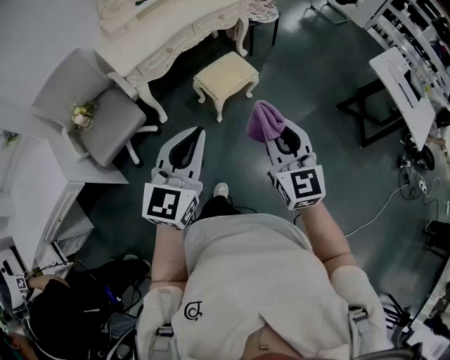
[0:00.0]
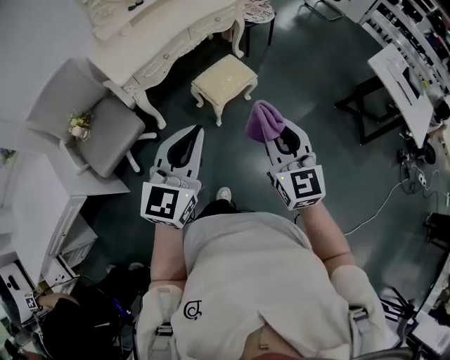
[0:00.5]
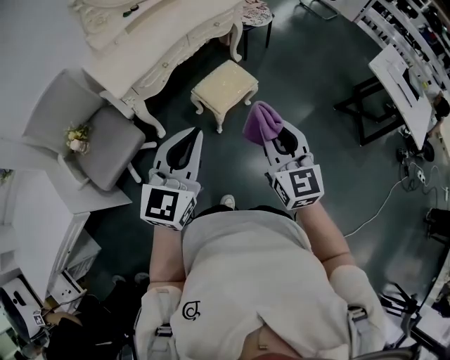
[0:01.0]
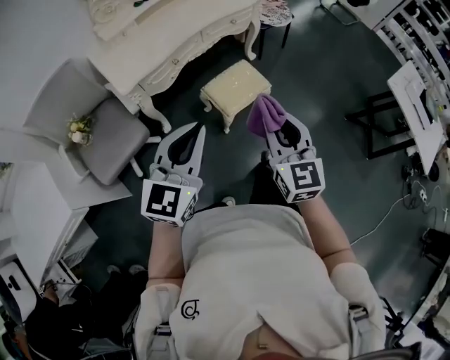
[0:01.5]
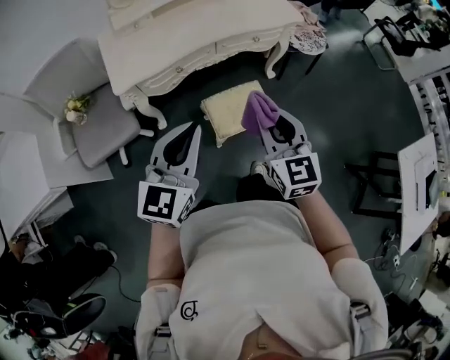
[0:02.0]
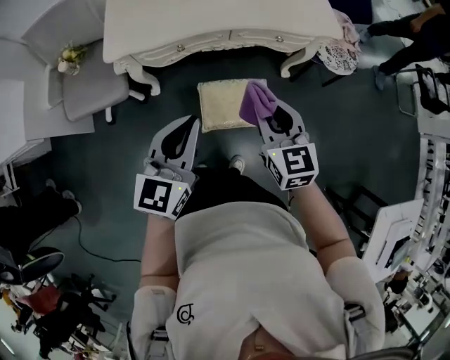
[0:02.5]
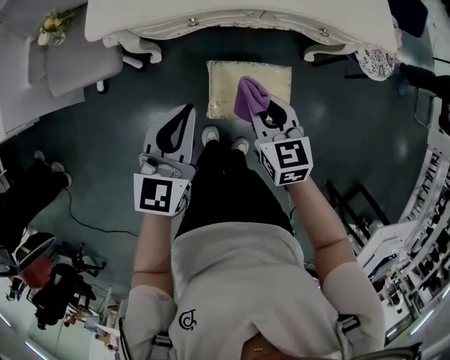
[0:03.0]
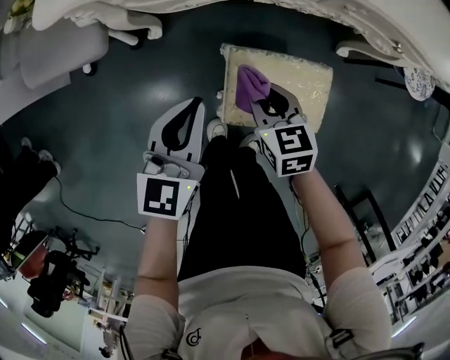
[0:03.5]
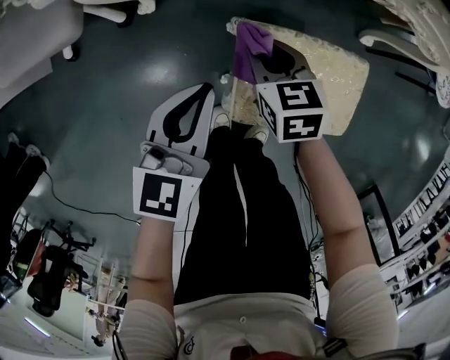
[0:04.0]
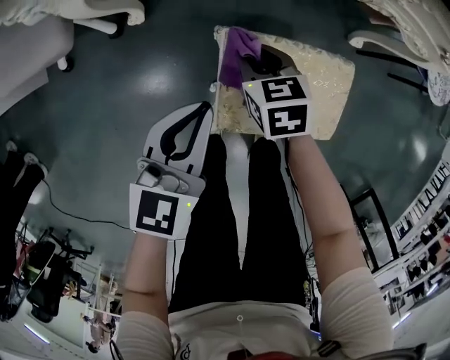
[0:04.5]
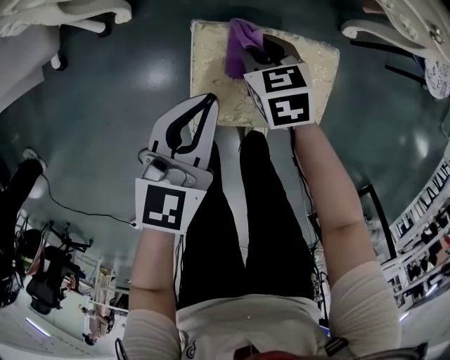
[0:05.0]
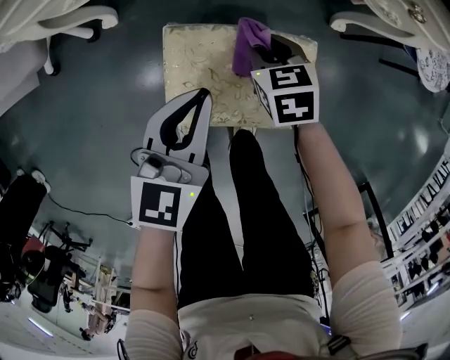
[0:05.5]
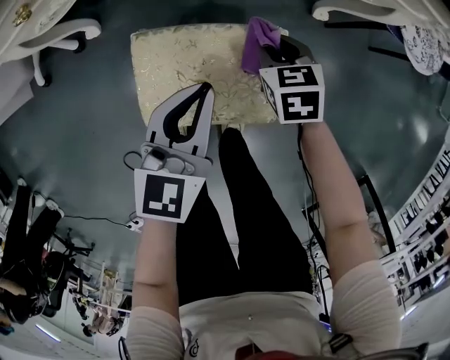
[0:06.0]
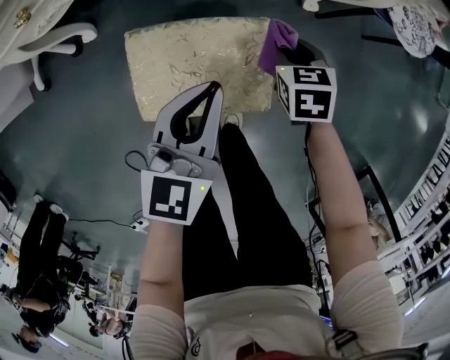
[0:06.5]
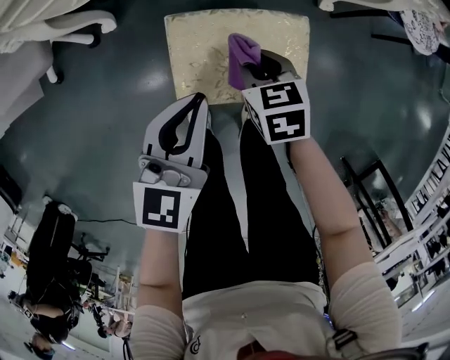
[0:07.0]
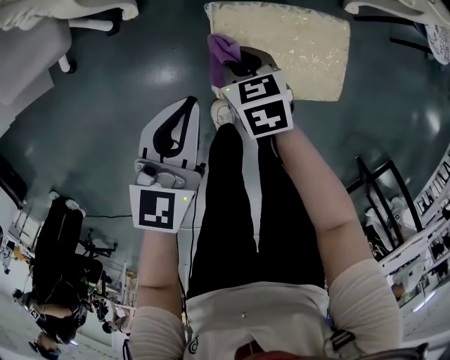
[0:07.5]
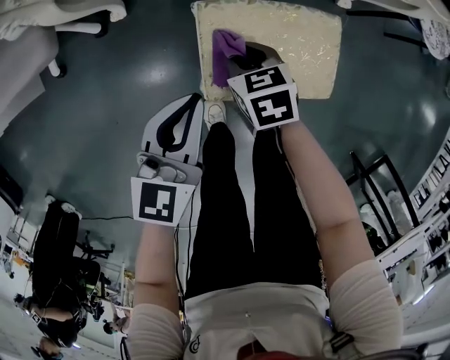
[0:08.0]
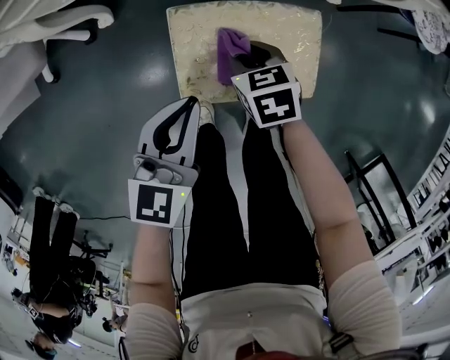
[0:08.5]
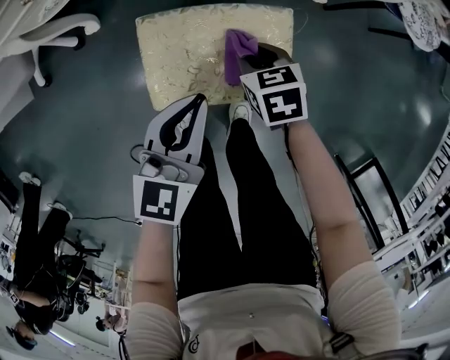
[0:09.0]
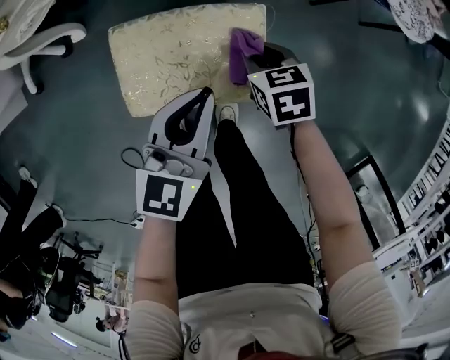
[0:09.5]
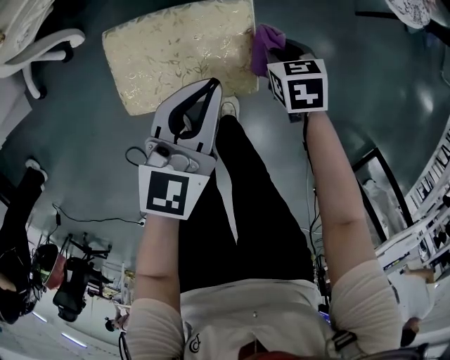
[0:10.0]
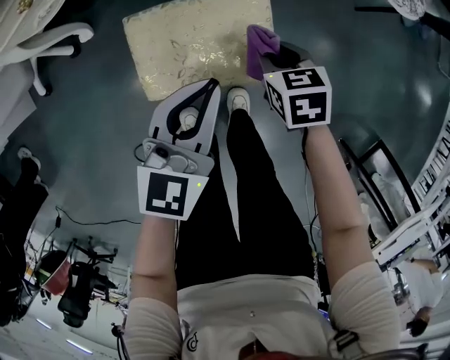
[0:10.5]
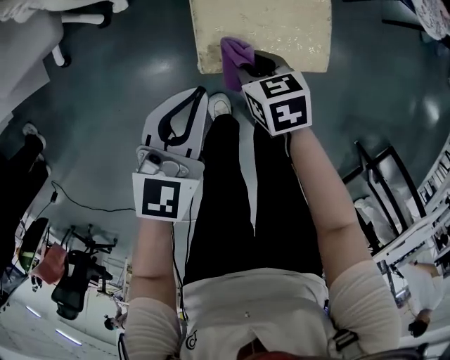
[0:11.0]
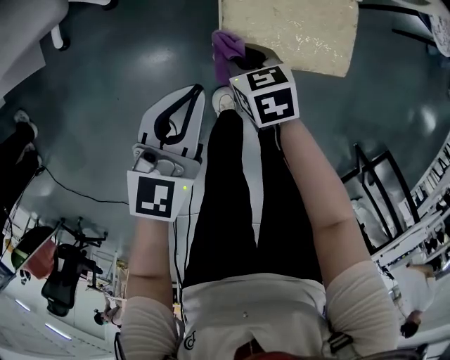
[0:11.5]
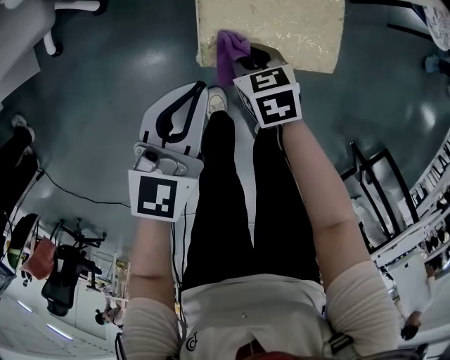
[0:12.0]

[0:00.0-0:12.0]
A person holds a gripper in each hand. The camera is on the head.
0:00.0 to 0:02.0: The two grippers go some 35 cm forward.
0:02.0 to 0:04.0: Both grippers travel together downward, approximately 50 cm. The right gripper tips its fingers downward by some 40 degrees. The left gripper rotates about 30 degrees.
0:04.0 to 0:06.0: Both grippers move to the right, about 25 cm.
0:06.0 to 0:08.0: The right gripper moves left and right over about 35 cm, changing direction 2 times, while the left gripper shifts some 20 cm to the left.
0:08.0 to 0:10.0: Both grippers travel together to the right, some 30 cm.
0:10.0 to 0:12.0: Both grippers travel together to the left, approximately 25 cm.

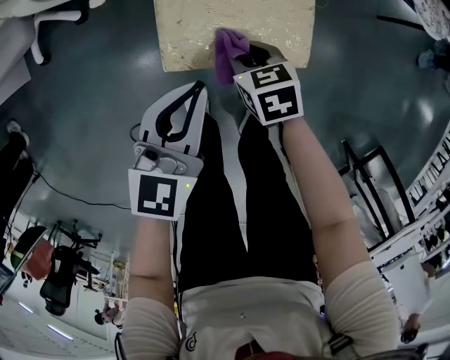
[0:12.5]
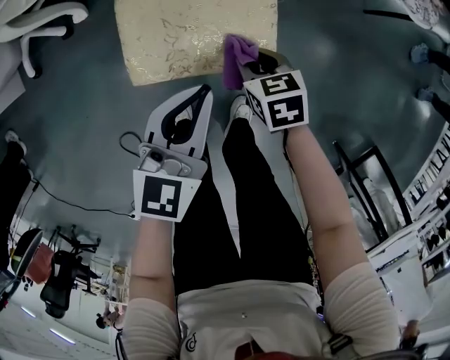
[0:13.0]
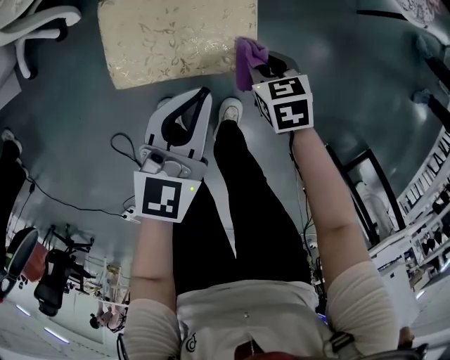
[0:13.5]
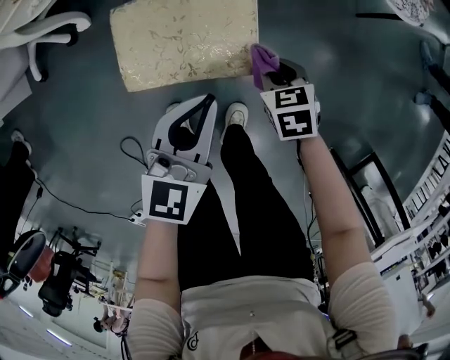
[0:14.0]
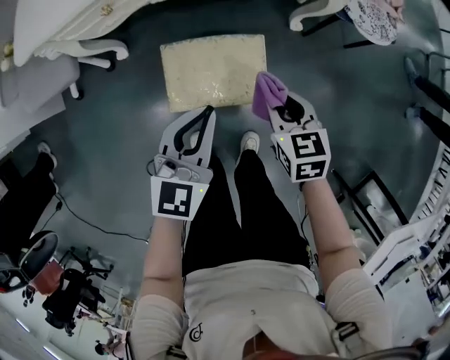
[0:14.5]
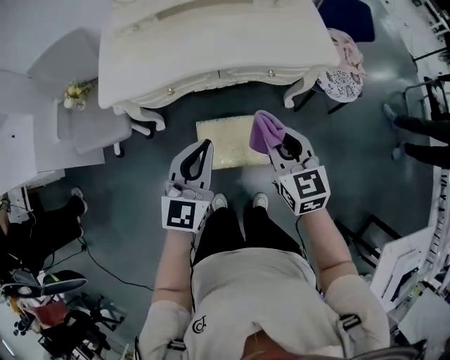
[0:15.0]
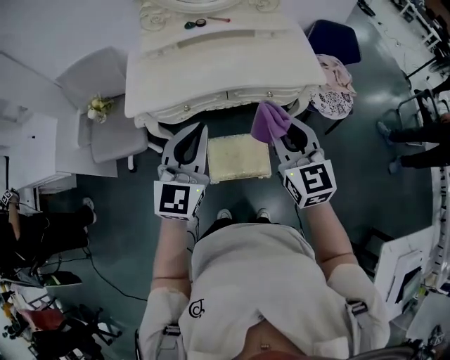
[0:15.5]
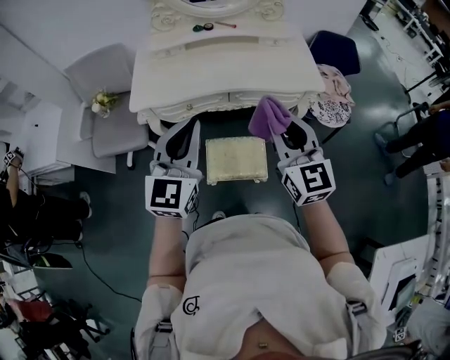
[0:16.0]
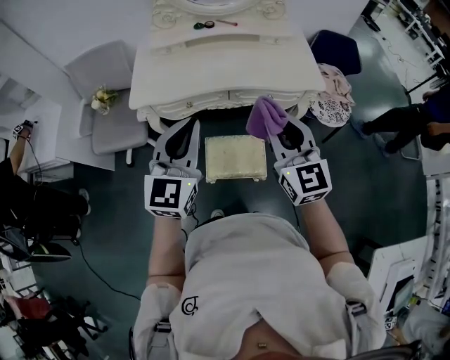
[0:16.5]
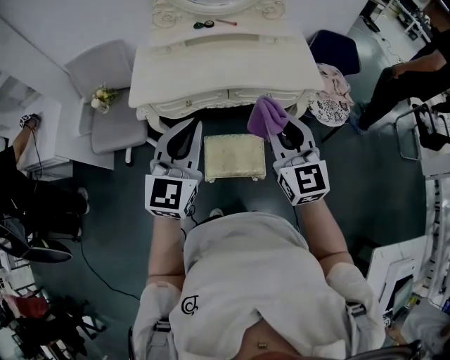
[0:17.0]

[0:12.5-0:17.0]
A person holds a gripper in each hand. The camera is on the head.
0:12.5 to 0:14.5: The right gripper shifts approximately 25 cm upward and to the right, and rotates about 20 degrees; the left gripper is displaced upward and to the right by roughly 20 cm.
0:14.5 to 0:17.0: Both grippers move upward, about 40 cm. The left gripper turns by some 20 degrees. Meanwhile the right gripper tilts its fingers about 50 degrees upward.

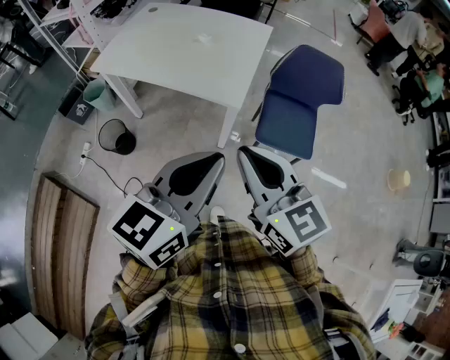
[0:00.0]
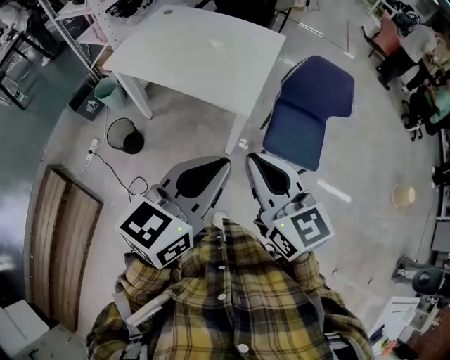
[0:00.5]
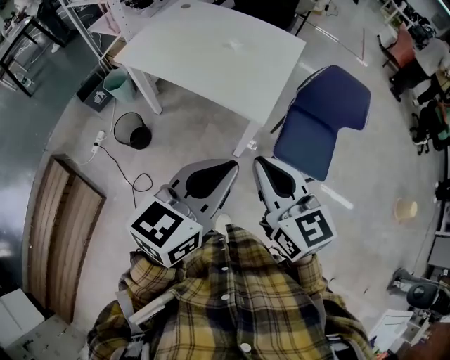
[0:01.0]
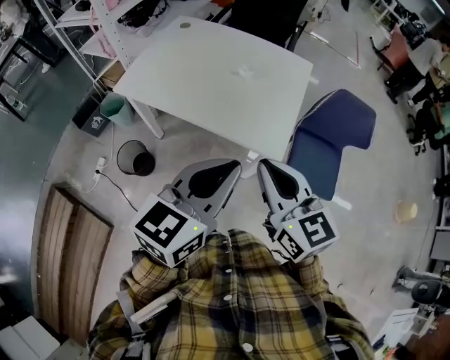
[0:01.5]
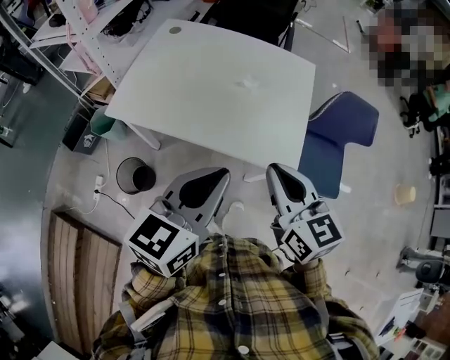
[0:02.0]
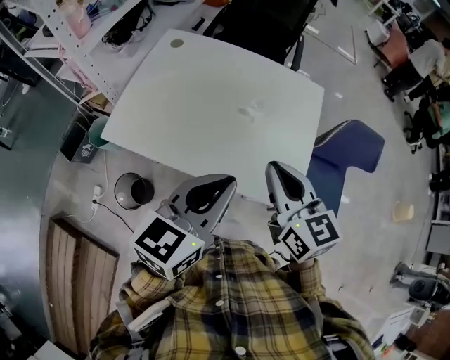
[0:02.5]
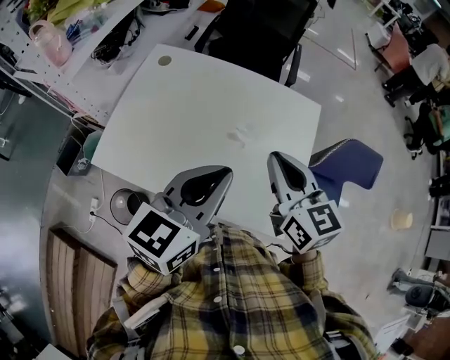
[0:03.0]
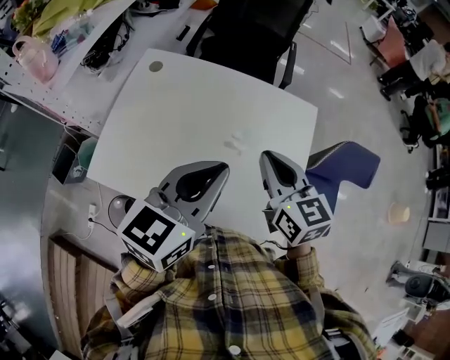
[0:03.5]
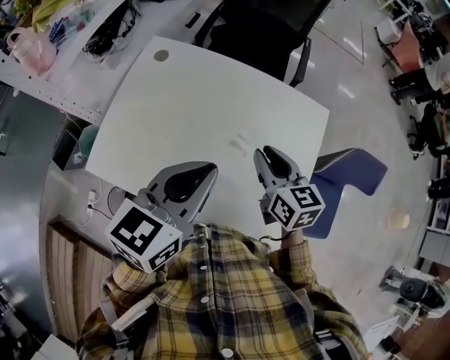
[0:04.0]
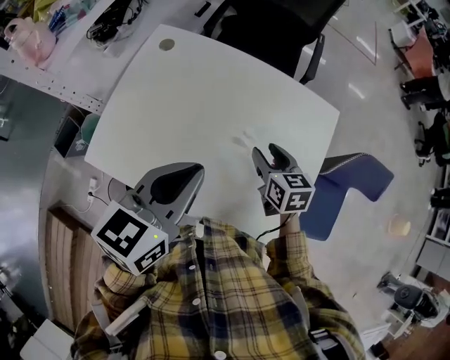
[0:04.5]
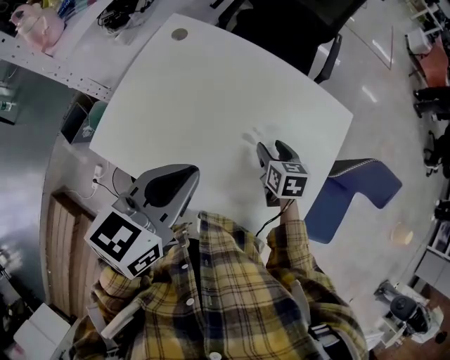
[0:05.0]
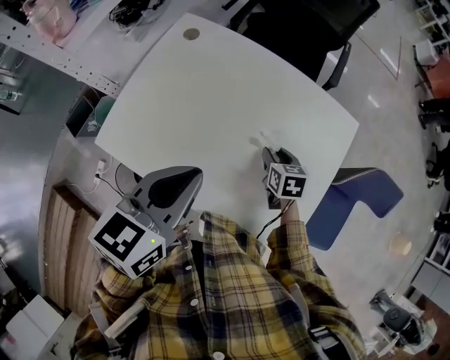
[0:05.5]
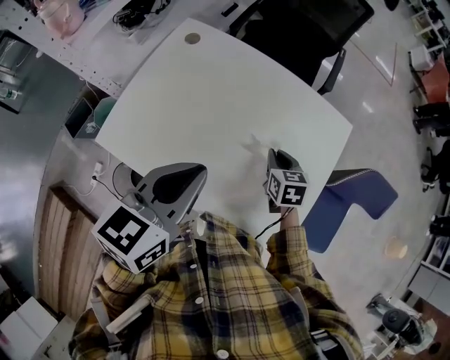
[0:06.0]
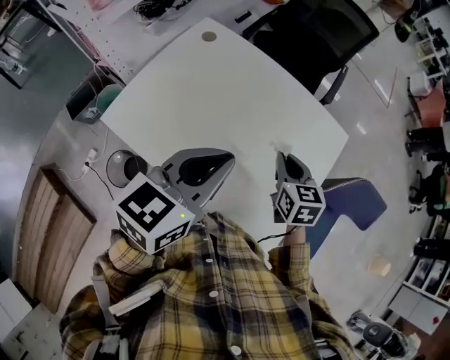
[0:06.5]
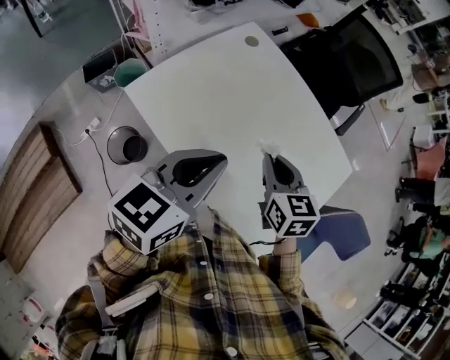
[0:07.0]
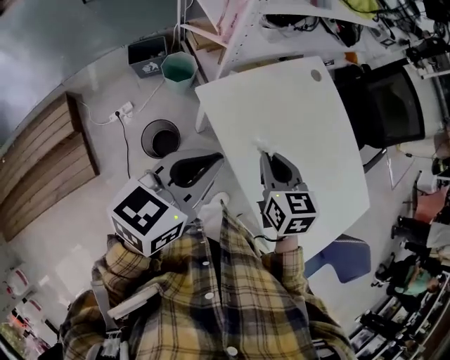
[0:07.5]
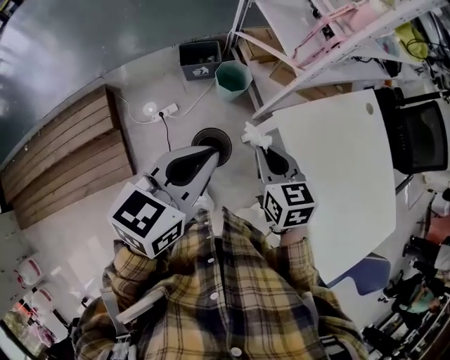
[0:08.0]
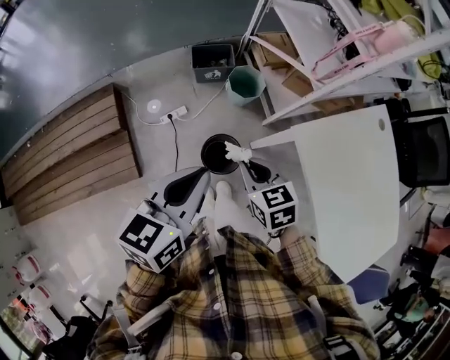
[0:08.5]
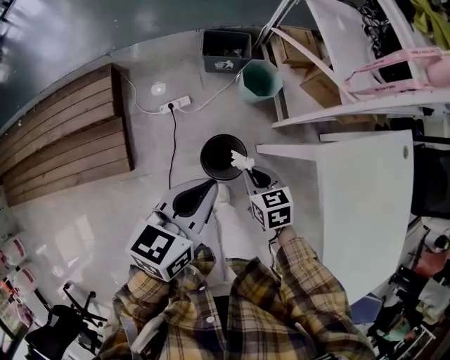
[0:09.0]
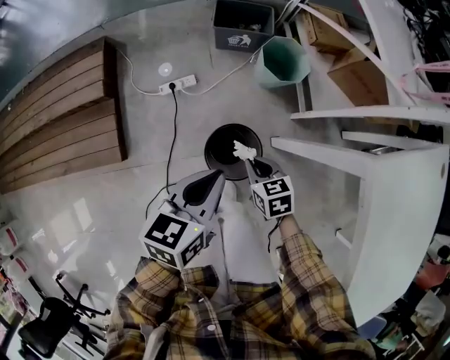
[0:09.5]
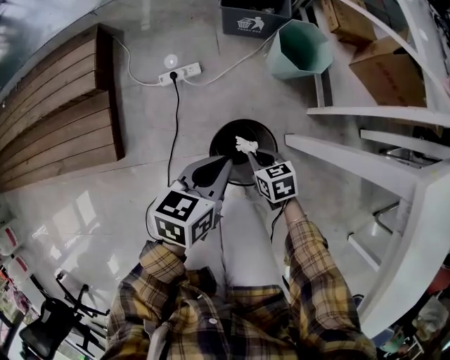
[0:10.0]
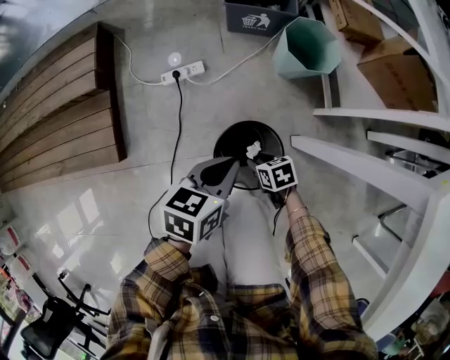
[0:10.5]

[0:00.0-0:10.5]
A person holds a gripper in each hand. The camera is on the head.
0:00.0 to 0:02.0: The grippers both shift forward and to the left by about 30 cm.
0:02.0 to 0:04.0: The grippers both shift forward by roughly 30 cm.
0:04.0 to 0:06.5: The right gripper goes downward and returns, some 20 cm each way, and opens and closes again.
0:06.5 to 0:08.5: Both grippers are carried roughly 70 cm. The left gripper turns by approximately 50 degrees; the right gripper rotates approximately 60 degrees.
0:08.5 to 0:10.5: Both grippers travel together downward, approximately 60 cm. The right gripper turns by roughly 40 degrees, and opens its fingers; the left gripper rotates about 20 degrees.
